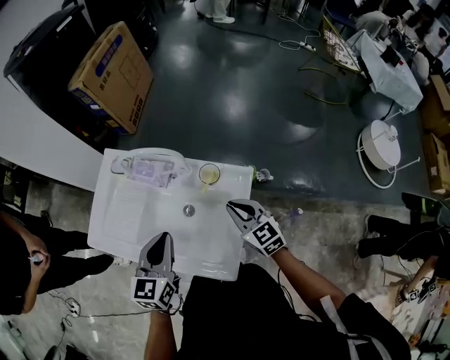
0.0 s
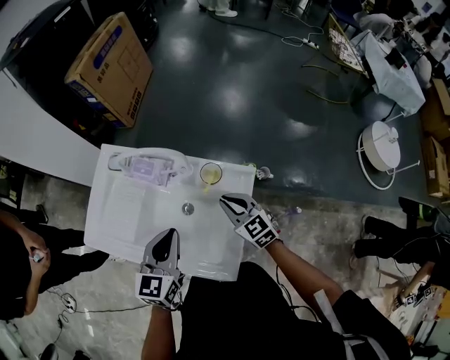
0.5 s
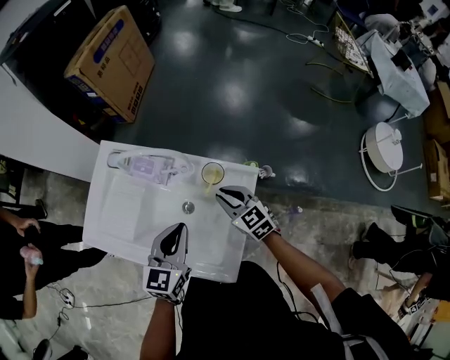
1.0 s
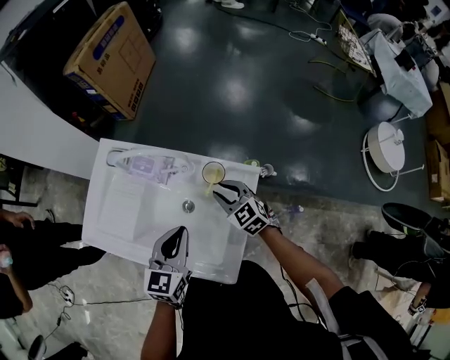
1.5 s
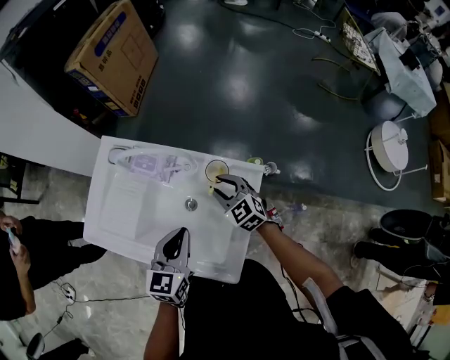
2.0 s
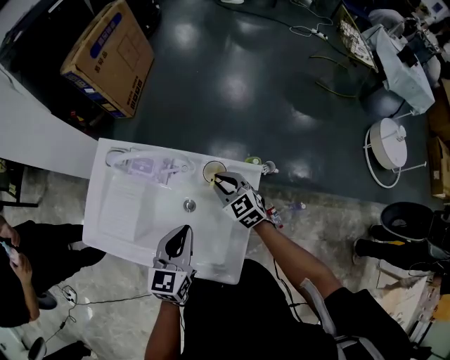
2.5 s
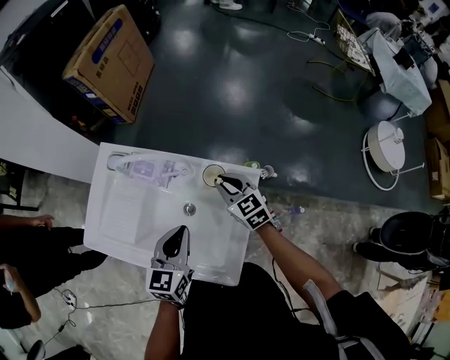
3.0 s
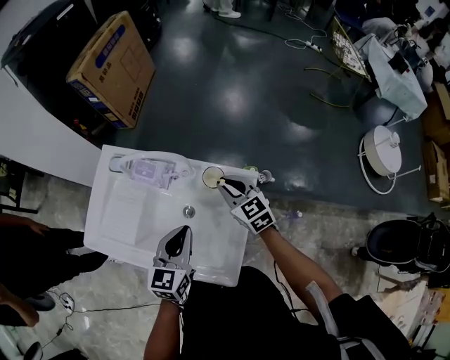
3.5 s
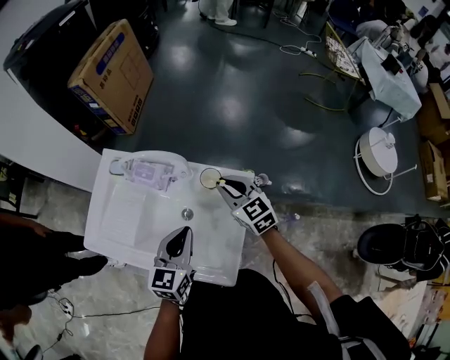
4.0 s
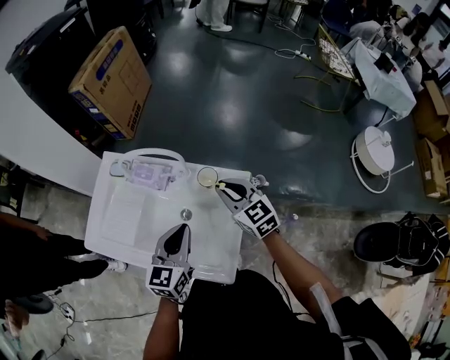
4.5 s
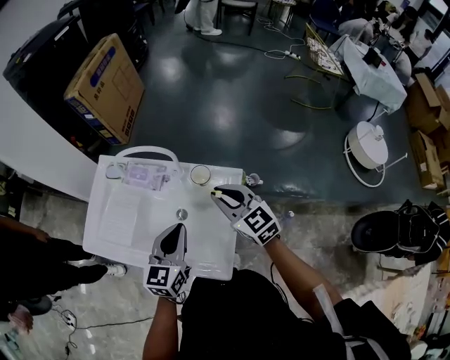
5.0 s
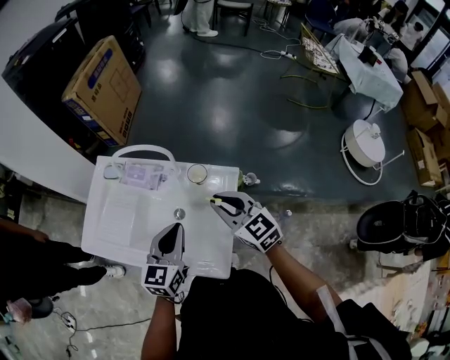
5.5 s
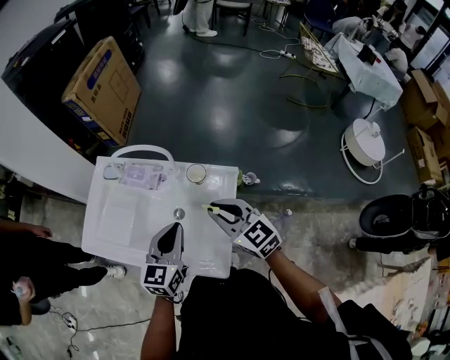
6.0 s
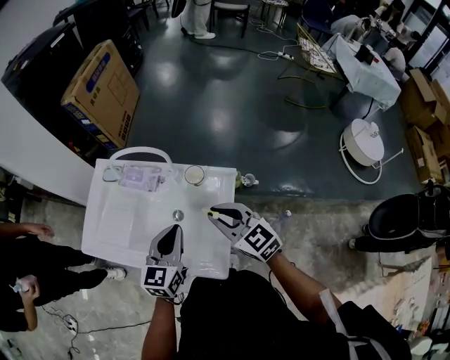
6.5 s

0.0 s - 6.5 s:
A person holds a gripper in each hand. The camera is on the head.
0.0 s - 2.0 s: The right gripper moves forward and downward, approximately 10 cm, and opens its fingers, while the left gripper is displaced downward by approximately 5 cm.
2.0 s - 4.5 s: The right gripper moves upward, roughly 15 cm, while the left gripper changes place by approximately 5 cm.
4.5 s - 6.5 s: The right gripper shifts about 10 cm backward.

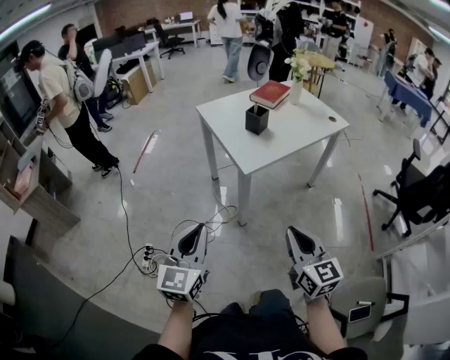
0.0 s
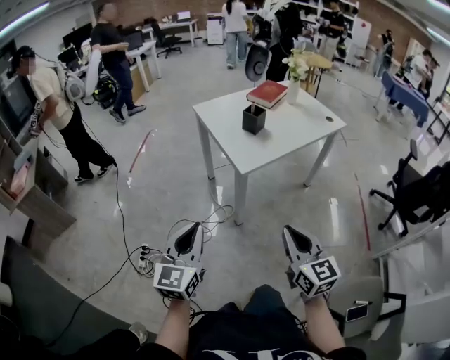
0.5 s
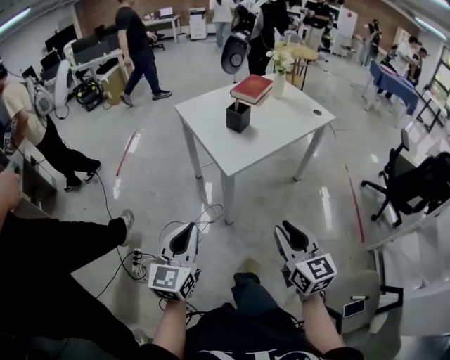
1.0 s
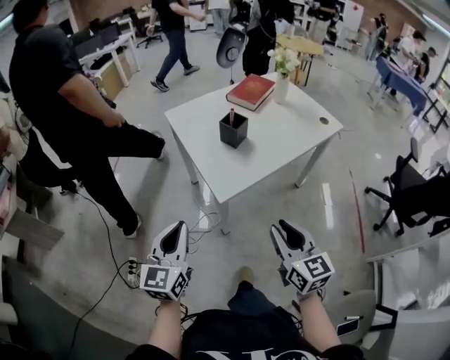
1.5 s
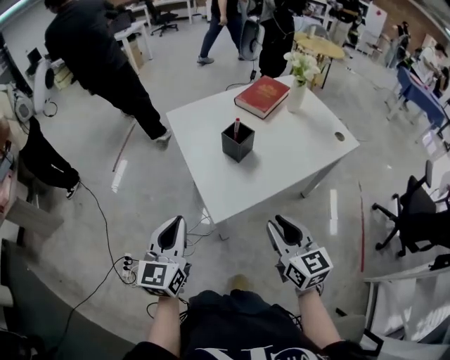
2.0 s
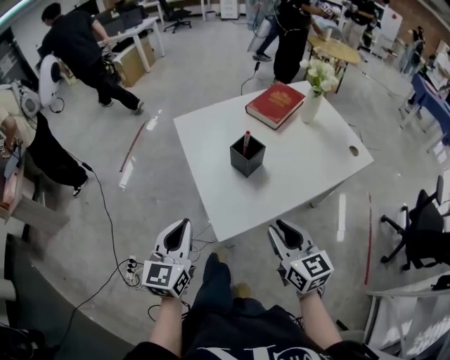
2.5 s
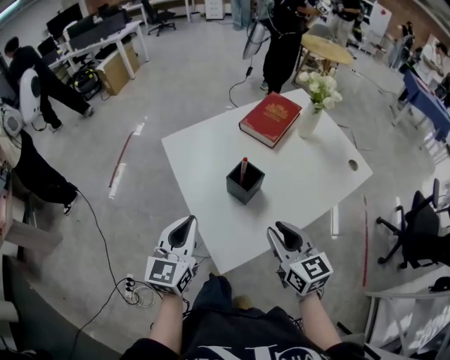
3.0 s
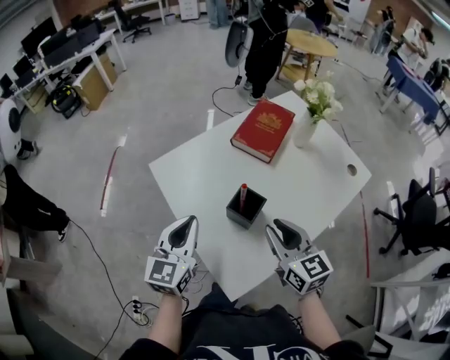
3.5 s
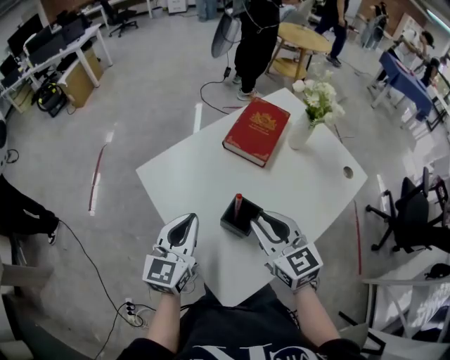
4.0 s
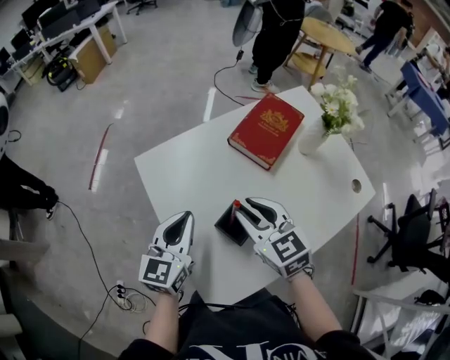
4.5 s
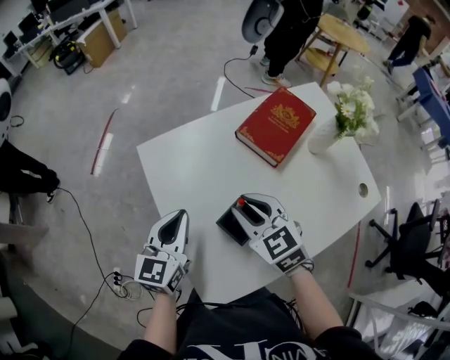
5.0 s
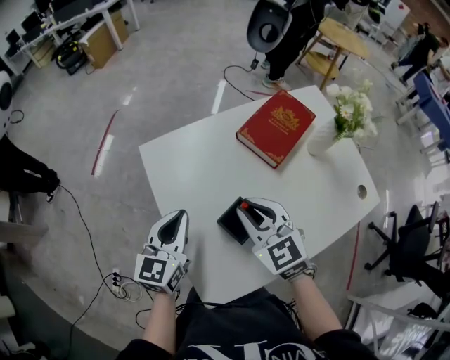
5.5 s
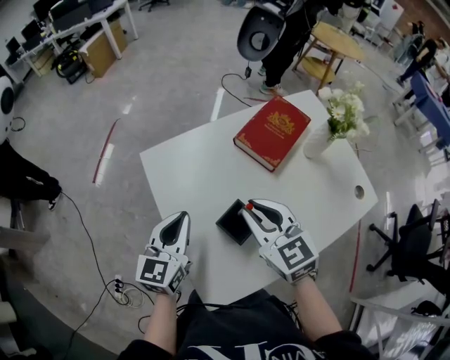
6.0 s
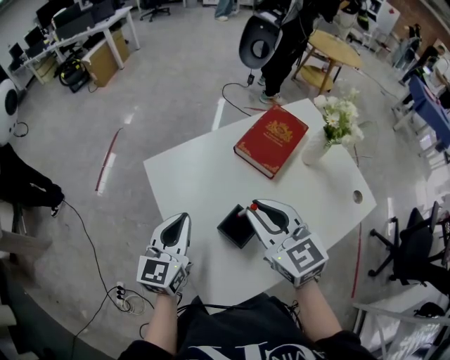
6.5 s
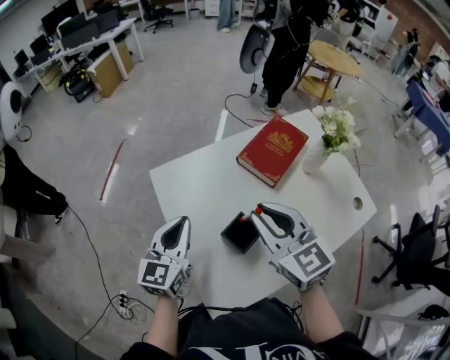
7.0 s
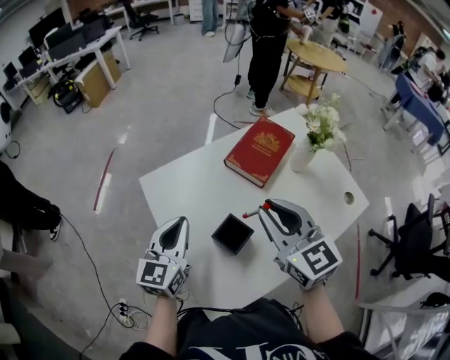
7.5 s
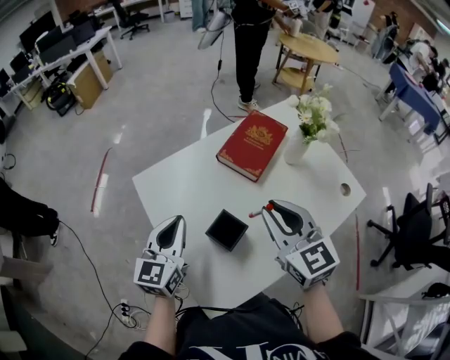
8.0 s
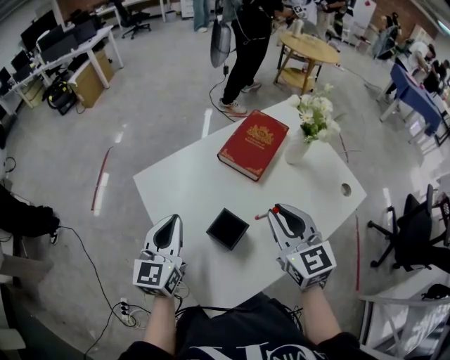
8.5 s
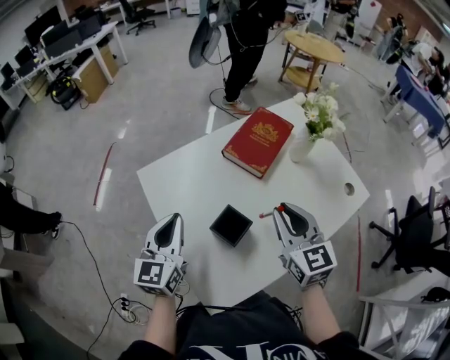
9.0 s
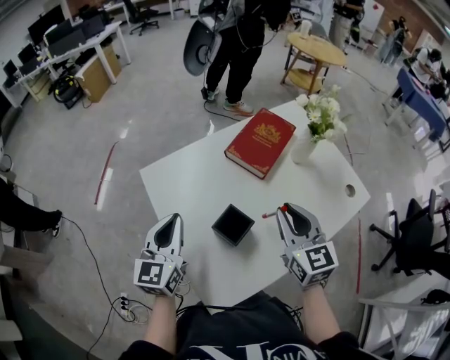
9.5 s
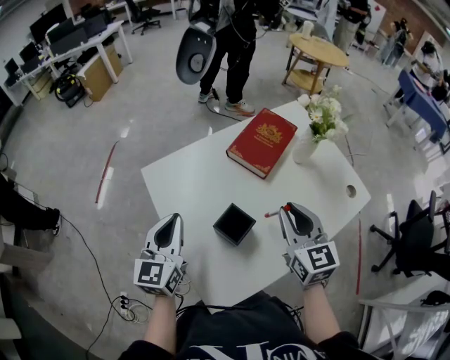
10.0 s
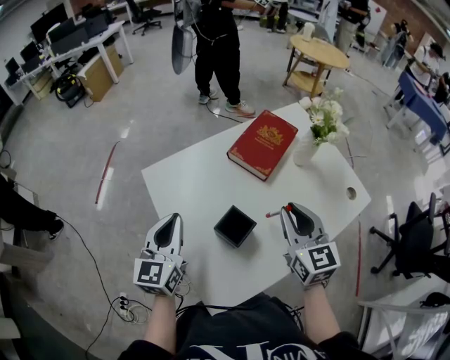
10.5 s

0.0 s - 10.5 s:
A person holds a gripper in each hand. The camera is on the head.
0.0 s - 2.0 s: Both grippers travel together forward, roughly 30 cm. The right gripper opens up.
2.0 s - 4.0 s: The two grippers go roughly 30 cm forward.
4.0 s - 6.5 s: The right gripper is displaced forward by some 5 cm.
6.5 s - 8.5 s: The right gripper is displaced to the right by roughly 10 cm.
8.5 s - 10.5 s: The grippers move only a little.

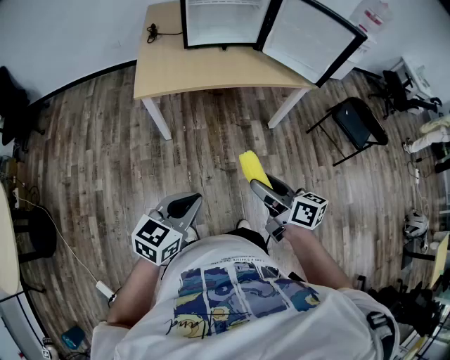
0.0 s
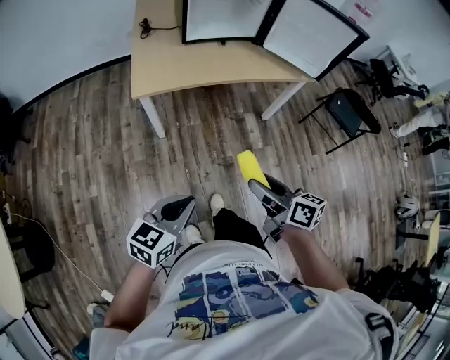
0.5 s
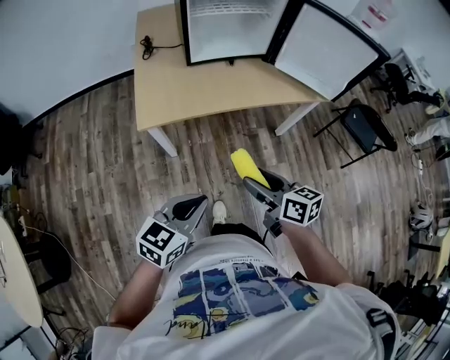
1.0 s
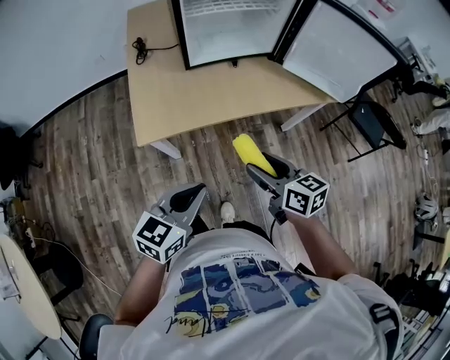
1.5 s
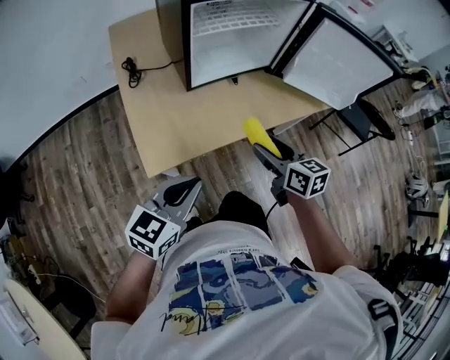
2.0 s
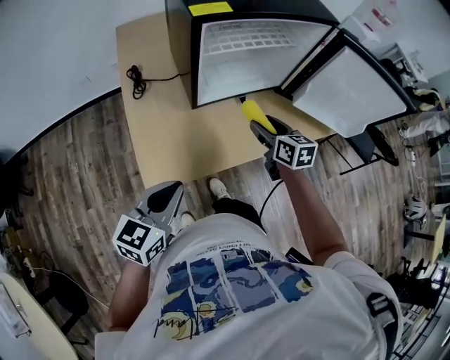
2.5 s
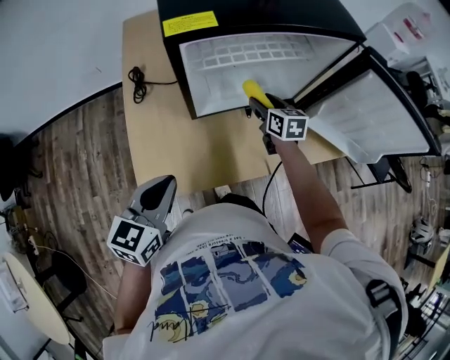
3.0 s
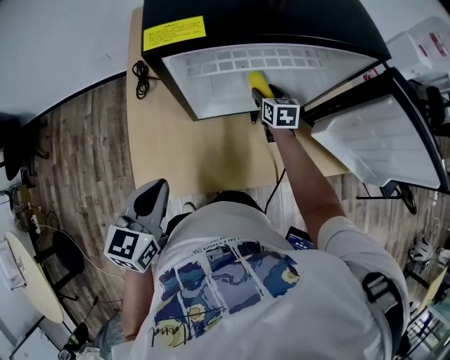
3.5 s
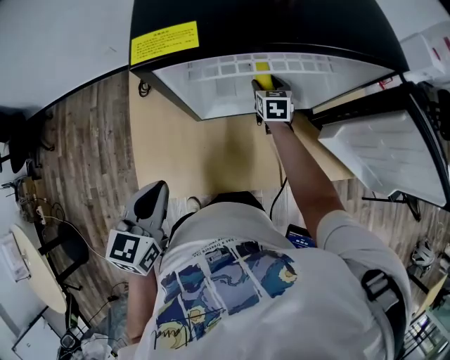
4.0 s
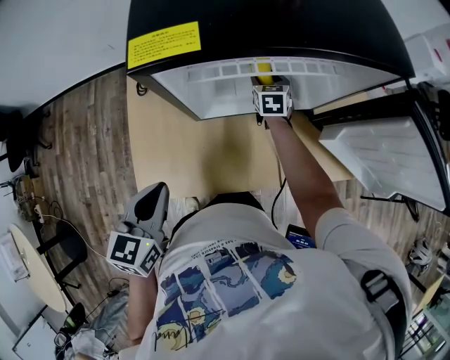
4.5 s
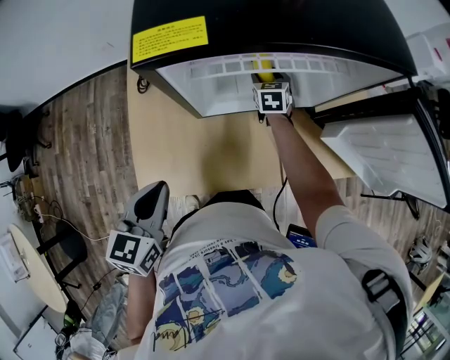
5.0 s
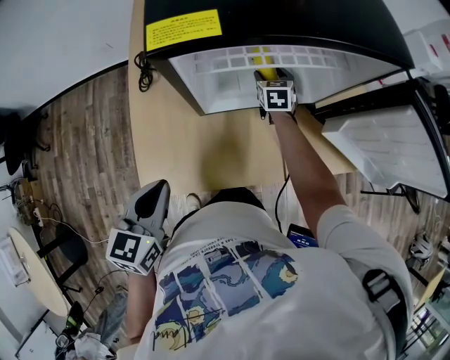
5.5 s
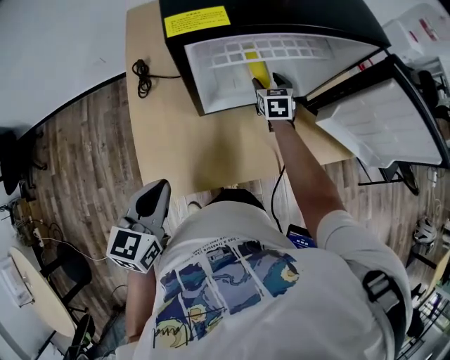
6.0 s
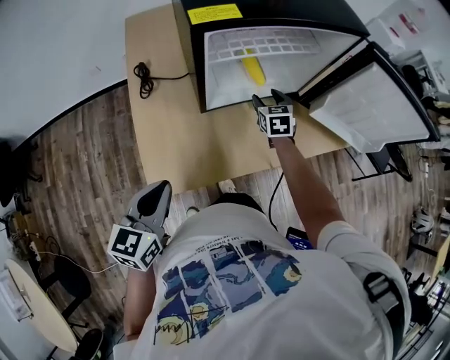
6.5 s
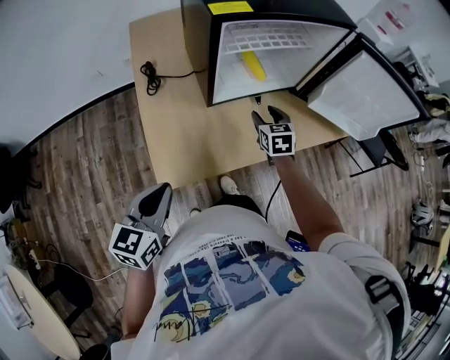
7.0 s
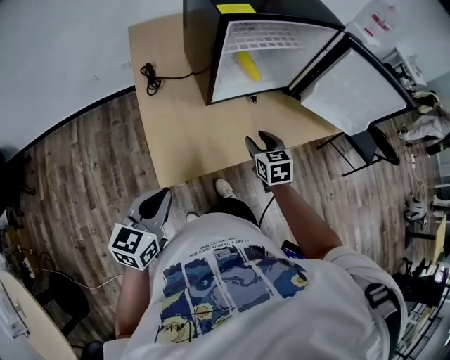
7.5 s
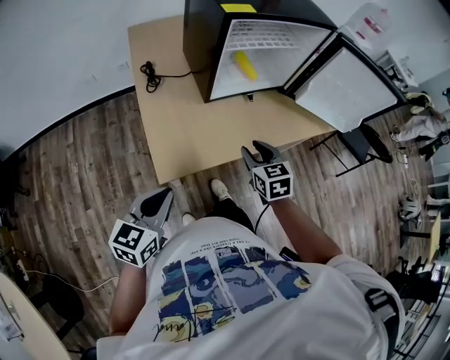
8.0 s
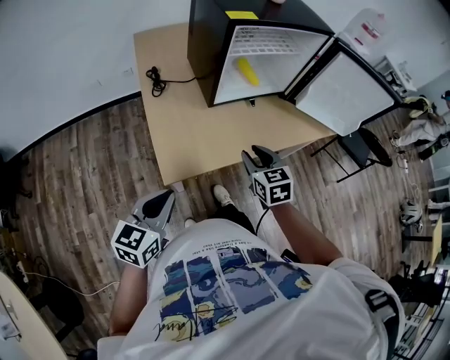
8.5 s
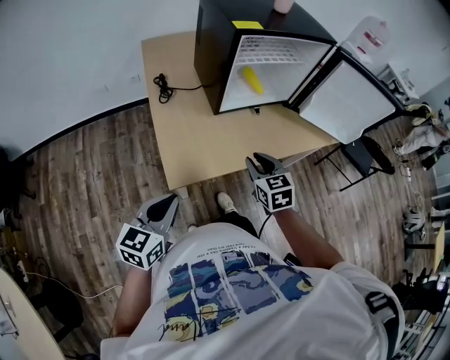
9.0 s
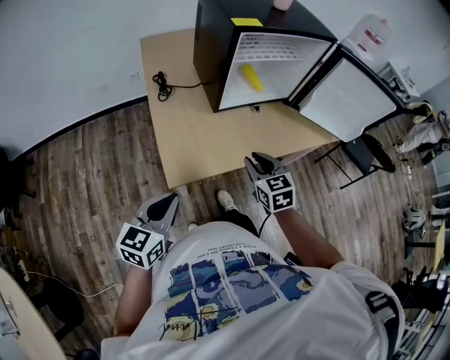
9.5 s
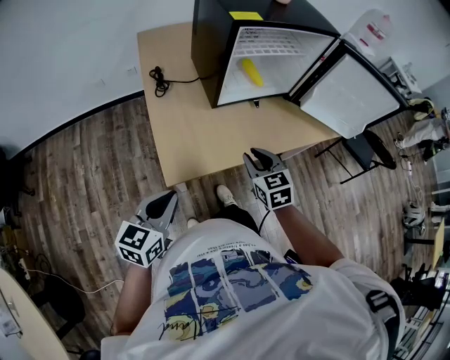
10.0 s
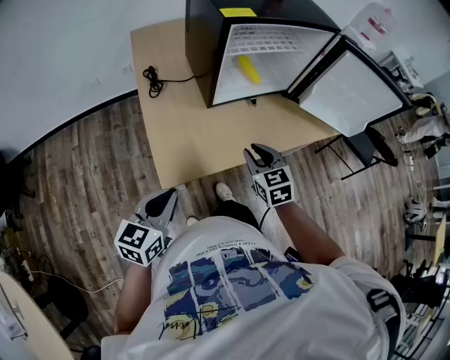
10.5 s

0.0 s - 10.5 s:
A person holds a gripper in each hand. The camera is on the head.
0.0 s - 2.0 s: Both grippers are carried forward and to the left, about 40 cm. The right gripper rotates approximately 30 degrees.
2.0 s - 4.0 s: The right gripper goes roughly 50 cm forward, and turns by roughly 20 degrees, while the left gripper moves forward, about 20 cm, and swivels roughly 40 degrees.
4.0 s - 6.5 s: The right gripper goes some 15 cm backward and upward. The left gripper shifts approximately 10 cm backward and to the left.
6.5 s - 8.5 s: The right gripper moves backward, roughly 30 cm, and closes up. The left gripper is displaced backward by approximately 15 cm.
8.5 s - 10.5 s: The grippers move only a little.
